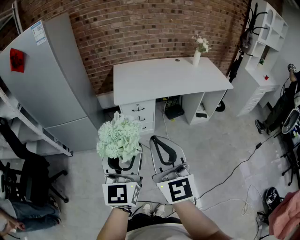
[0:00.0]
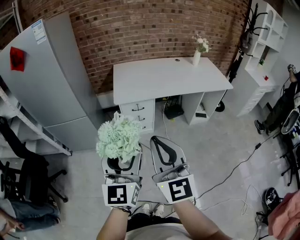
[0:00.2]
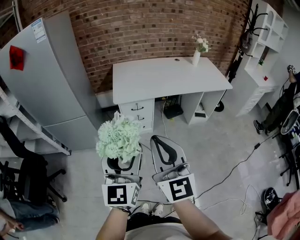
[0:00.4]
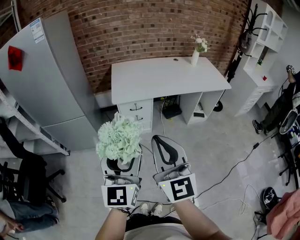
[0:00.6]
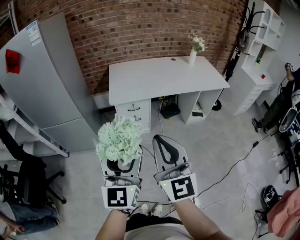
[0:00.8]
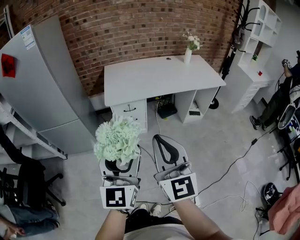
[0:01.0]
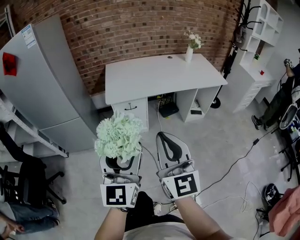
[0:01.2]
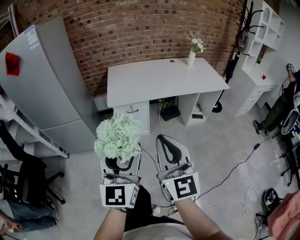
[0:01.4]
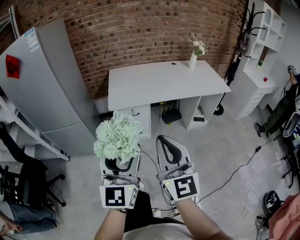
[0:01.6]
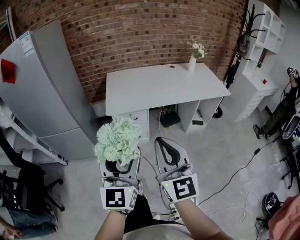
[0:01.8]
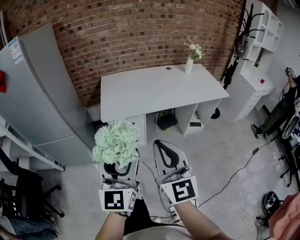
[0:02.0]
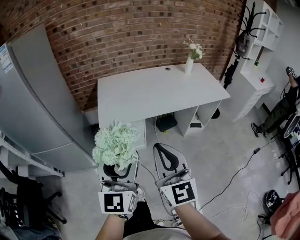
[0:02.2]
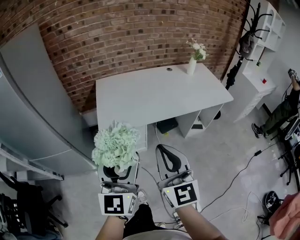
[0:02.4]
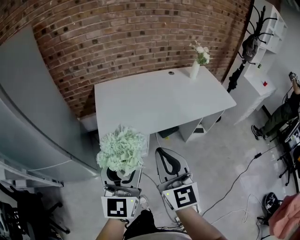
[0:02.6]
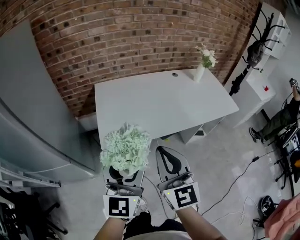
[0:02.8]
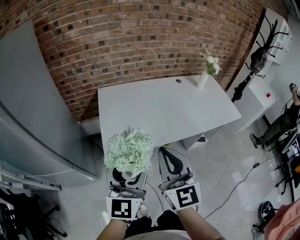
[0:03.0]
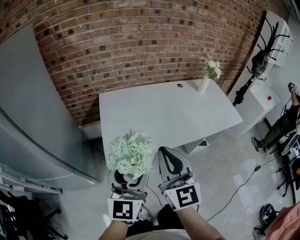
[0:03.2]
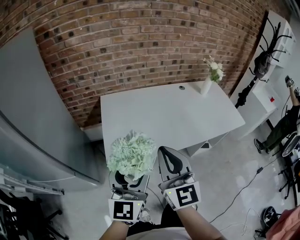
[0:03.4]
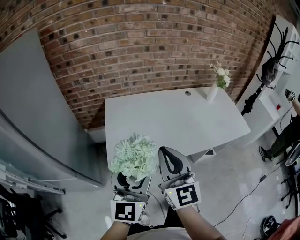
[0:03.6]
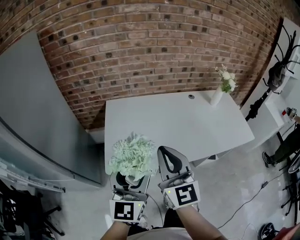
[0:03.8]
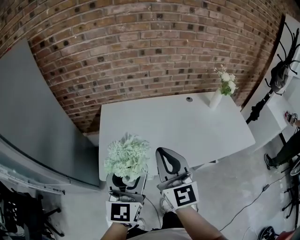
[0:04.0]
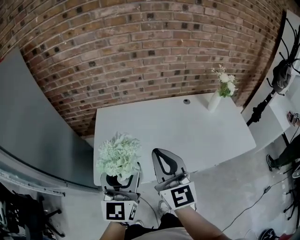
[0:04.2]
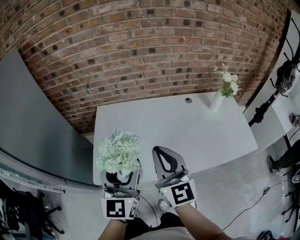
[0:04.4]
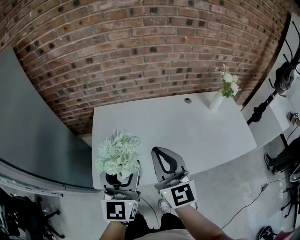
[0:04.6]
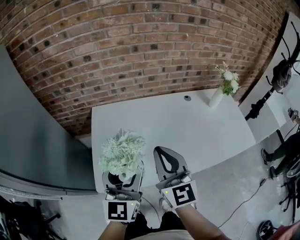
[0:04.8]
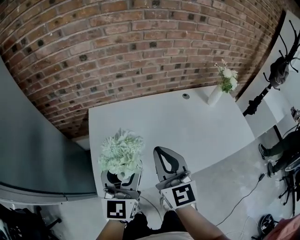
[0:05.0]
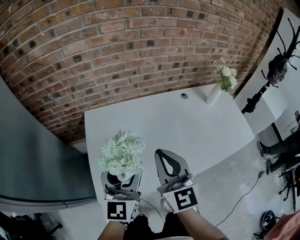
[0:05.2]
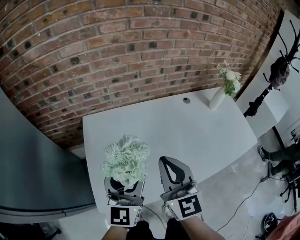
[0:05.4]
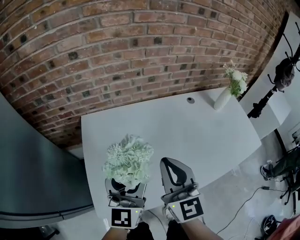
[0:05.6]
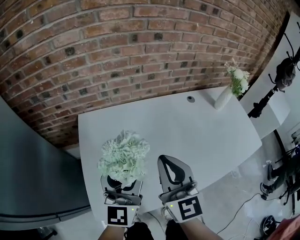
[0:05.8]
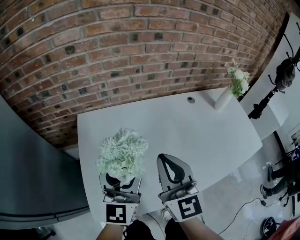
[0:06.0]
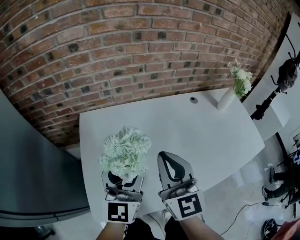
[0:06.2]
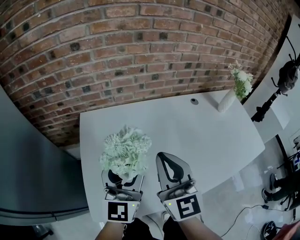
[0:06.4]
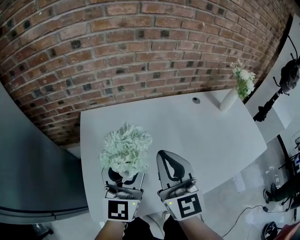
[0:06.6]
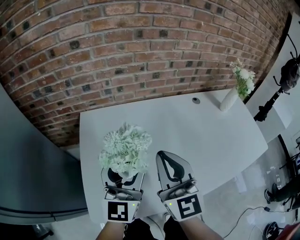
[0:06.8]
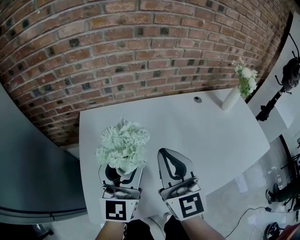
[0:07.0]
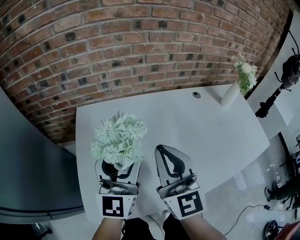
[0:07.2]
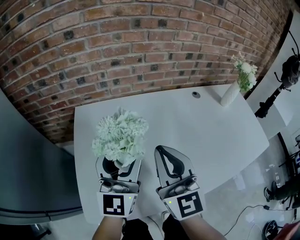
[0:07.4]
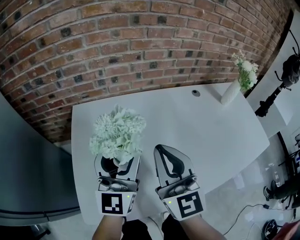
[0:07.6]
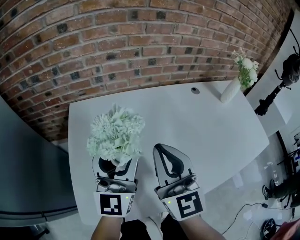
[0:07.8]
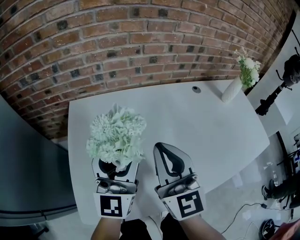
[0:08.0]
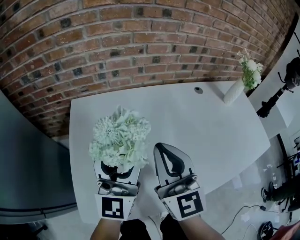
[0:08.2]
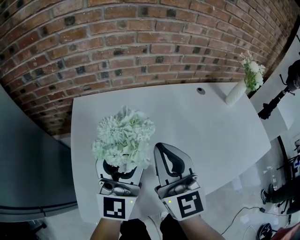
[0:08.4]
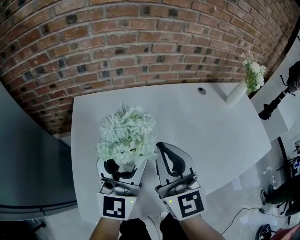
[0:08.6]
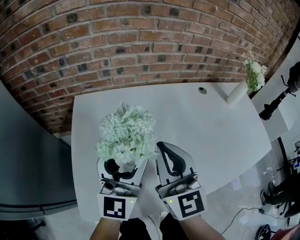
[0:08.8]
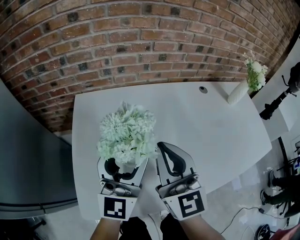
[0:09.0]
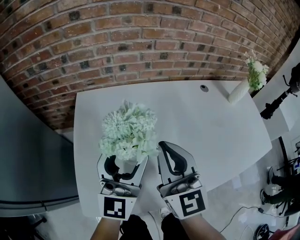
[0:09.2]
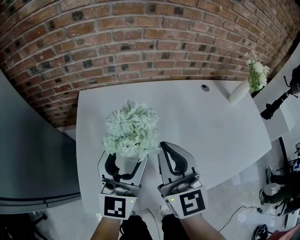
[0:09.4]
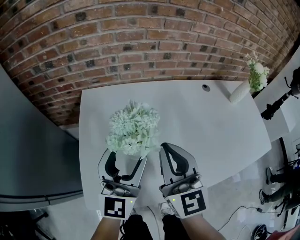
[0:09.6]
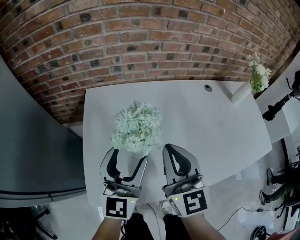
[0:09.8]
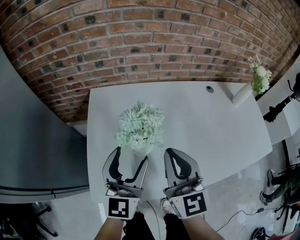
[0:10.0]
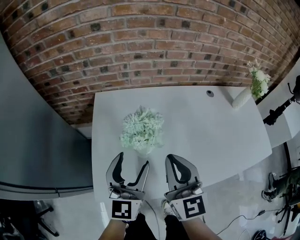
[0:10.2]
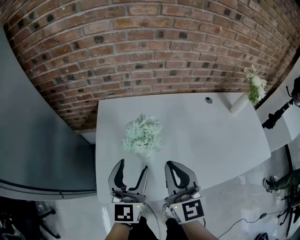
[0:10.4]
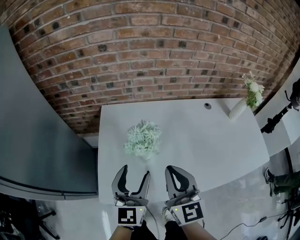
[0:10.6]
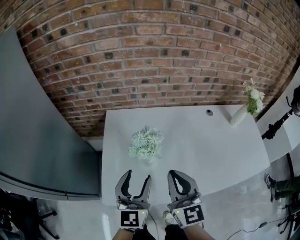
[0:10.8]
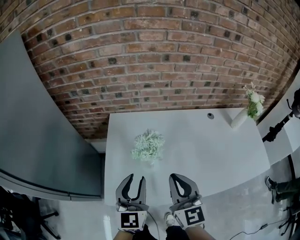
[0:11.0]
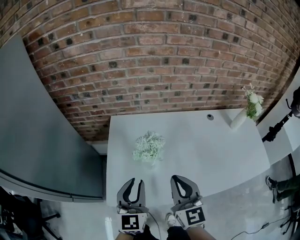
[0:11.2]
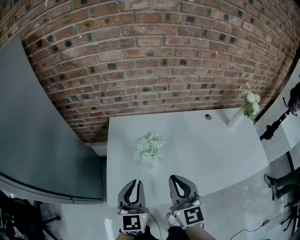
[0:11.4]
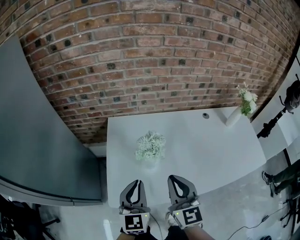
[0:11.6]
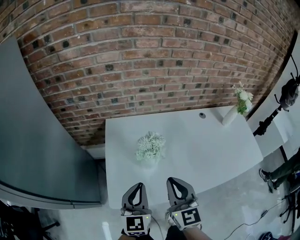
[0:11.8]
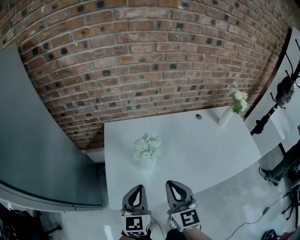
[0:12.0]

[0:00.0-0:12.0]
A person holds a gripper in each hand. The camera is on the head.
0:00.0 to 0:01.6: The left gripper moves about 5 cm; the right gripper moves to the right, some 5 cm.
0:01.6 to 0:03.0: The two grippers go approximately 35 cm forward.
0:03.0 to 0:04.4: Both grippers travel together forward and to the right, some 25 cm.
0:04.4 to 0:06.0: The two grippers go roughly 20 cm forward, downward and to the left.
0:06.0 to 0:07.6: The grippers move only a little.
0:07.6 to 0:09.0: The grippers stay close to where they were, moving slightly.
0:09.0 to 0:10.4: The grippers both shift backward by approximately 5 cm.
0:10.4 to 0:12.0: Both grippers travel together backward, some 5 cm. The left gripper closes up.

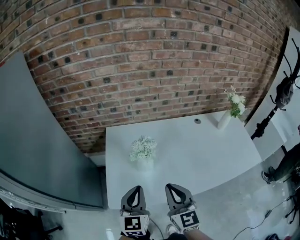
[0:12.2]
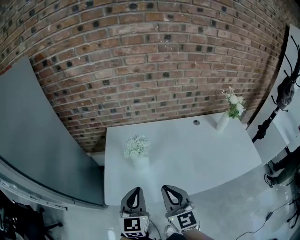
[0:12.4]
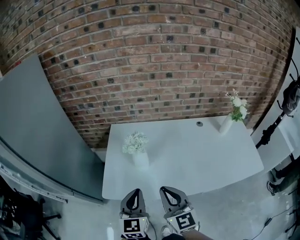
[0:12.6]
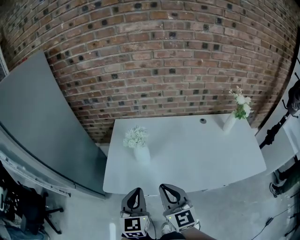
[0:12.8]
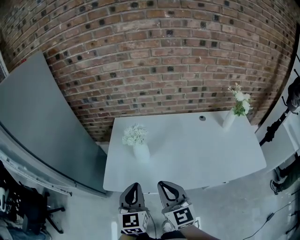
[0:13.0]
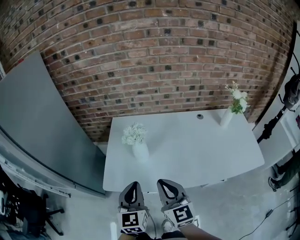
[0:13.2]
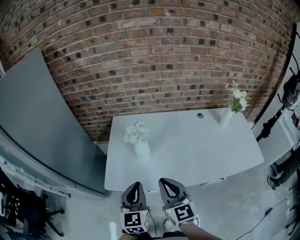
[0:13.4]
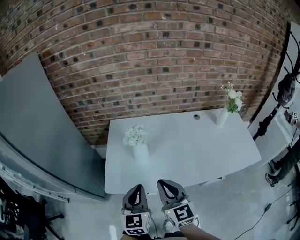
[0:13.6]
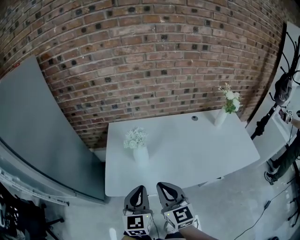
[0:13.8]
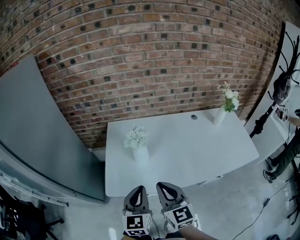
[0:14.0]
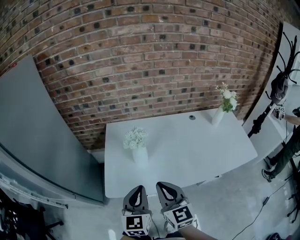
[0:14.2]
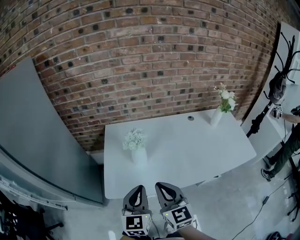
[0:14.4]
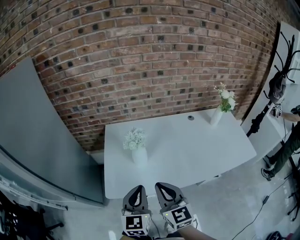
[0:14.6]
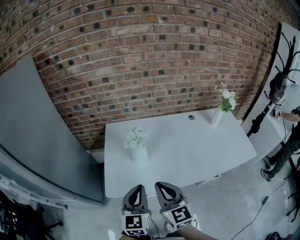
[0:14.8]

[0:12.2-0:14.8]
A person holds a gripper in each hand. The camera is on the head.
0:12.2 to 0:13.4: The two grippers go roughly 10 cm backward.
0:13.4 to 0:14.8: The grippers make only small movements.

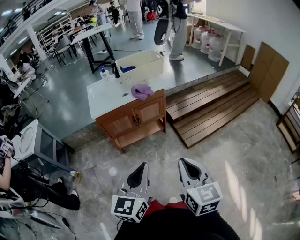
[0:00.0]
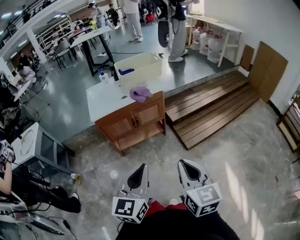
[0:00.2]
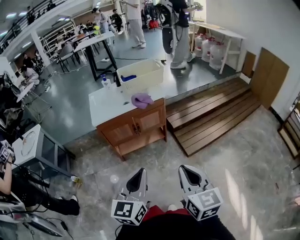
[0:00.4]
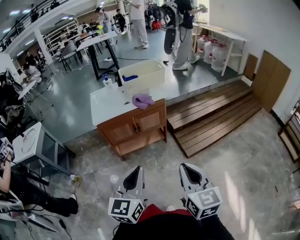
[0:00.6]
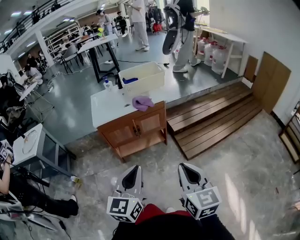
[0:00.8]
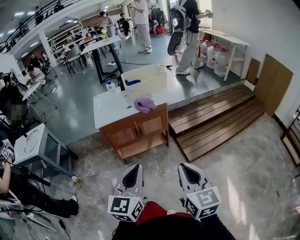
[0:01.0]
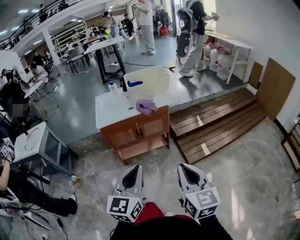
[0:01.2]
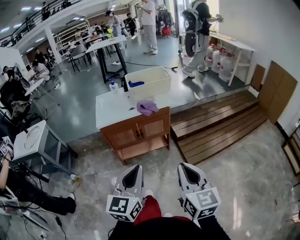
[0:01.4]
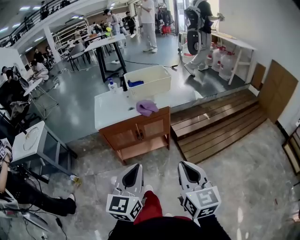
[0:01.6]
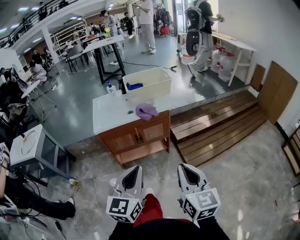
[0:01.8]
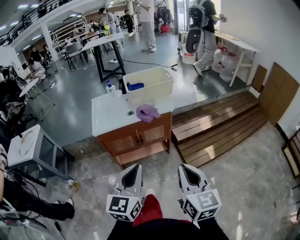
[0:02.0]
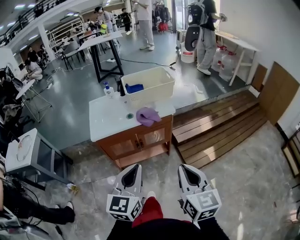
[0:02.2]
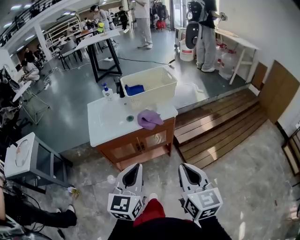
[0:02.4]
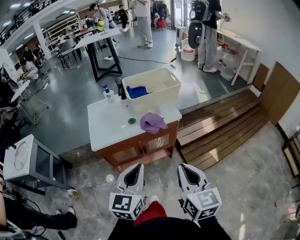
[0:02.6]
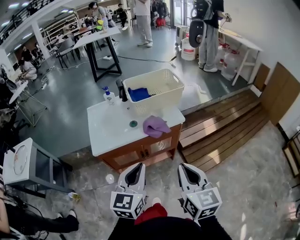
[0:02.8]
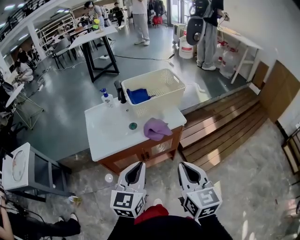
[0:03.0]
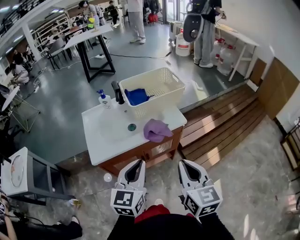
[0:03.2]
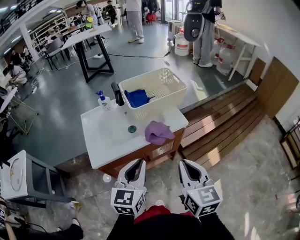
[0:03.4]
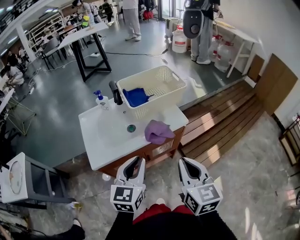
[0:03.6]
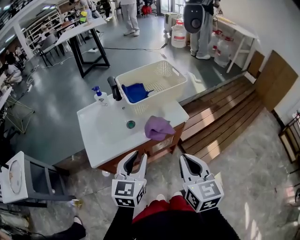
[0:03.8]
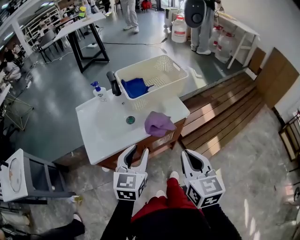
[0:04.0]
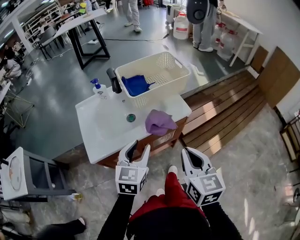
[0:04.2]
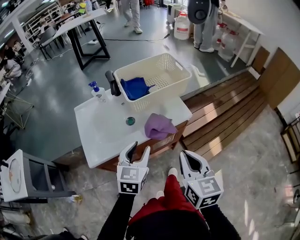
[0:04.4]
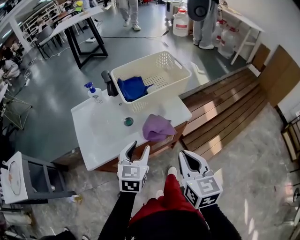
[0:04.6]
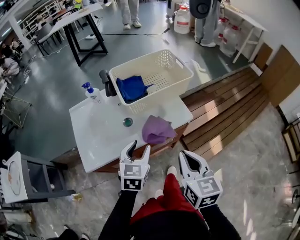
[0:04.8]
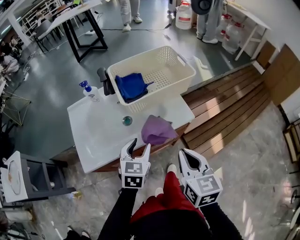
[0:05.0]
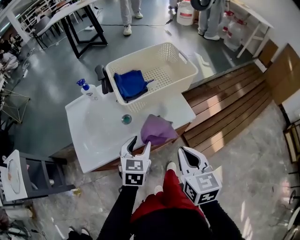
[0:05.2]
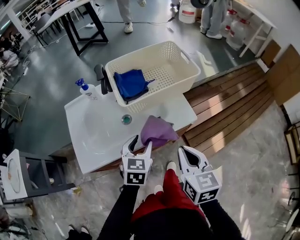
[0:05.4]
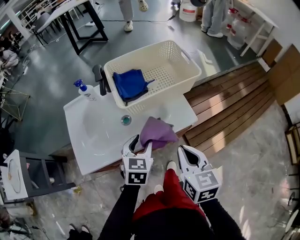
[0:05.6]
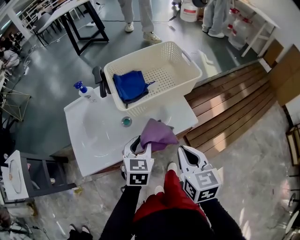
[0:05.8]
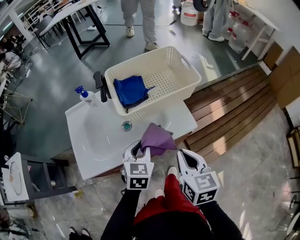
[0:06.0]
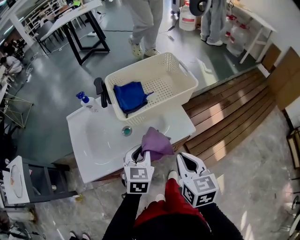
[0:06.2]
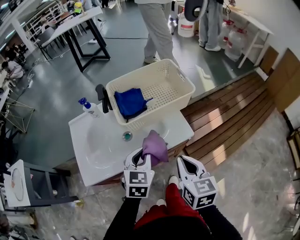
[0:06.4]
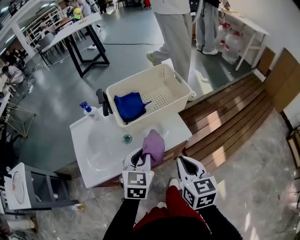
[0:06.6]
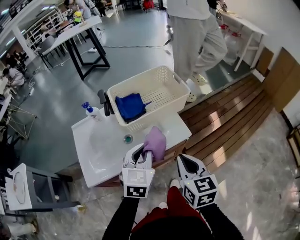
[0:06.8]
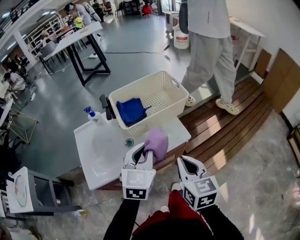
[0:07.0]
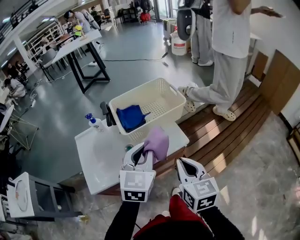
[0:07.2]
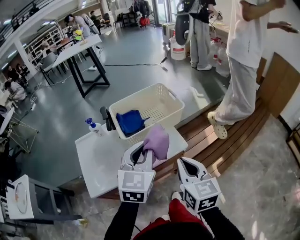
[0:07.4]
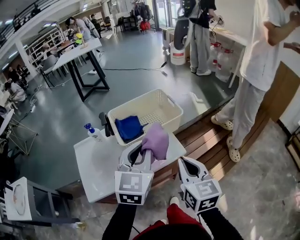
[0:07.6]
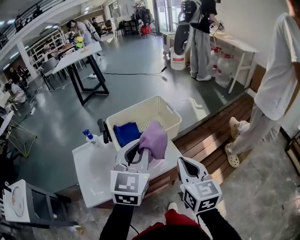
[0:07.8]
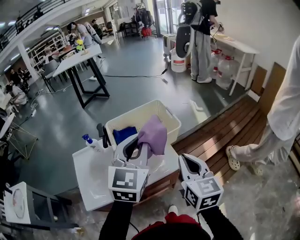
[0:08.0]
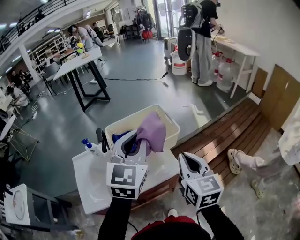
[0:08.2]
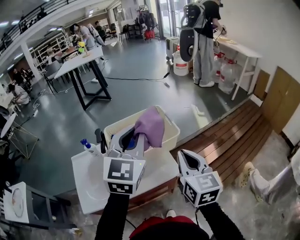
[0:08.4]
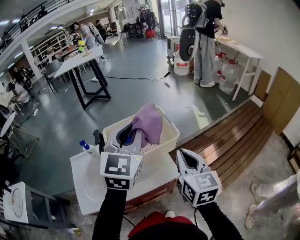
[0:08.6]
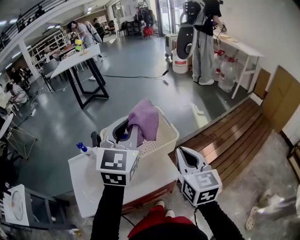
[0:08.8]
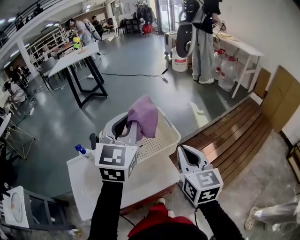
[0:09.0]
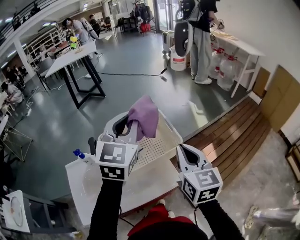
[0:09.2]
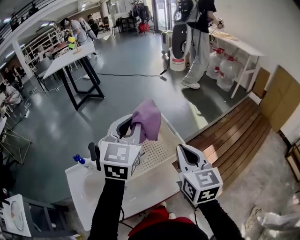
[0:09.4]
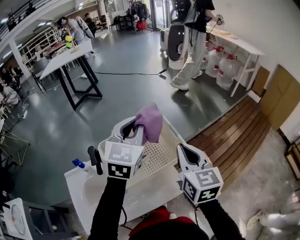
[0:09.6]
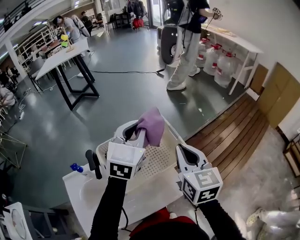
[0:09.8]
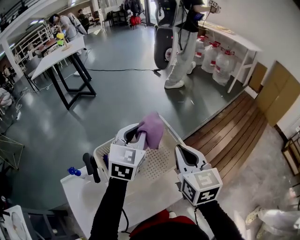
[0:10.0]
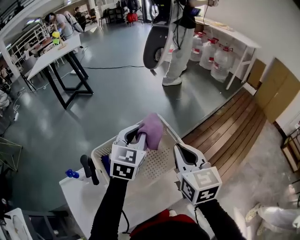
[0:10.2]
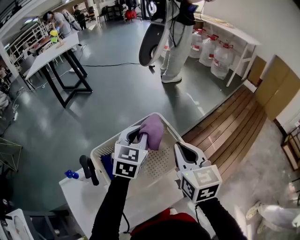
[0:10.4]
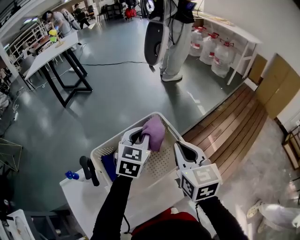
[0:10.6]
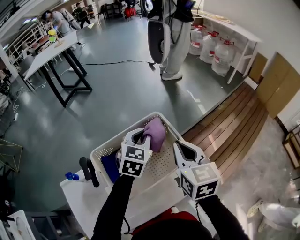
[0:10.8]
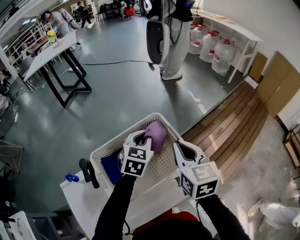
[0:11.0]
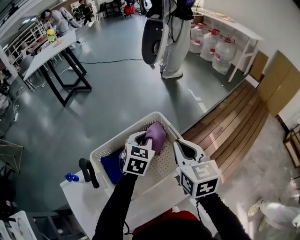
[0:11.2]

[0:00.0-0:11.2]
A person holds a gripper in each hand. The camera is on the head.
0:00.0 to 0:01.6: The two grippers go some 5 cm forward.
0:01.6 to 0:03.2: Both grippers travel together forward, roughly 30 cm.
0:03.2 to 0:04.8: The left gripper shifts about 20 cm forward and downward, and opens, while the right gripper is displaced forward and downward by about 10 cm.
0:04.8 to 0:06.4: The two grippers go about 5 cm forward. The left gripper closes.
0:06.4 to 0:08.0: The left gripper shifts roughly 25 cm upward, and changes its angle by roughly 30 degrees; the right gripper is displaced upward and forward by roughly 15 cm.
0:08.0 to 0:09.6: The grippers both shift forward by some 20 cm.
0:09.6 to 0:11.2: The left gripper moves downward, roughly 20 cm, and turns by approximately 20 degrees. The right gripper is displaced forward and downward by about 10 cm.
